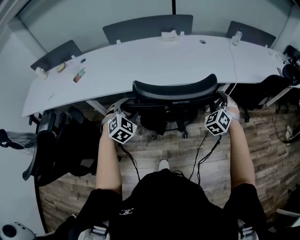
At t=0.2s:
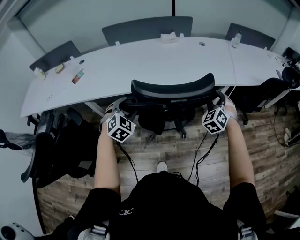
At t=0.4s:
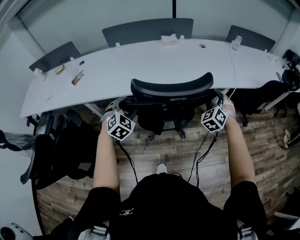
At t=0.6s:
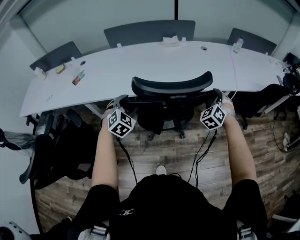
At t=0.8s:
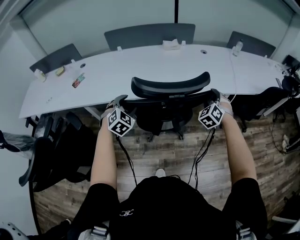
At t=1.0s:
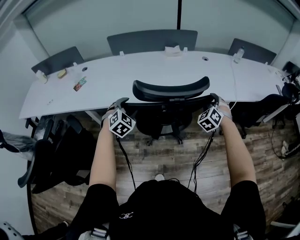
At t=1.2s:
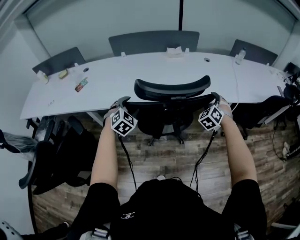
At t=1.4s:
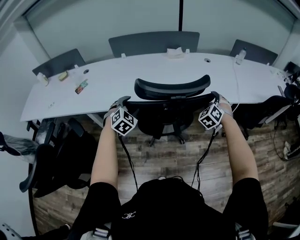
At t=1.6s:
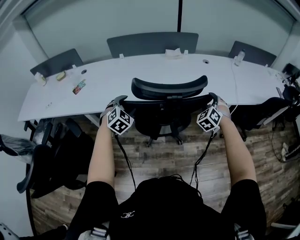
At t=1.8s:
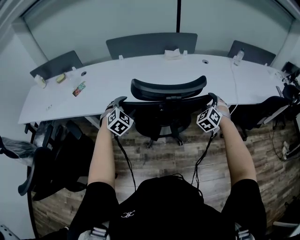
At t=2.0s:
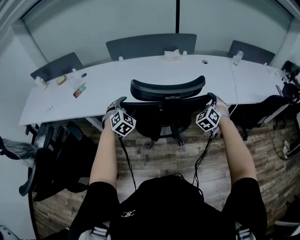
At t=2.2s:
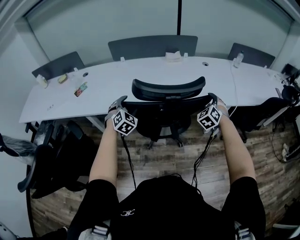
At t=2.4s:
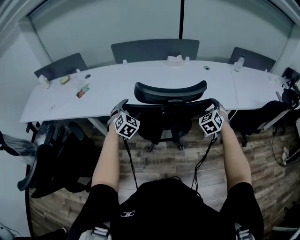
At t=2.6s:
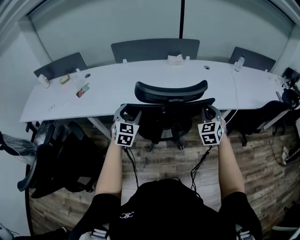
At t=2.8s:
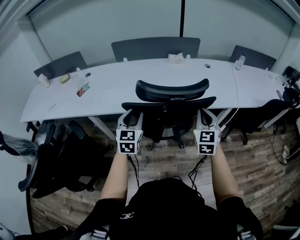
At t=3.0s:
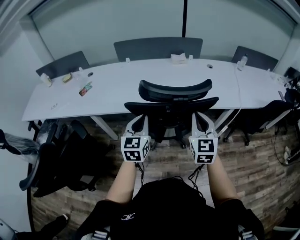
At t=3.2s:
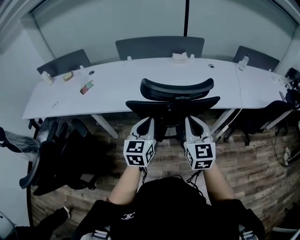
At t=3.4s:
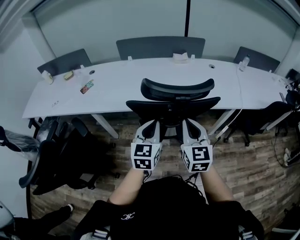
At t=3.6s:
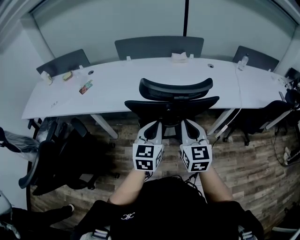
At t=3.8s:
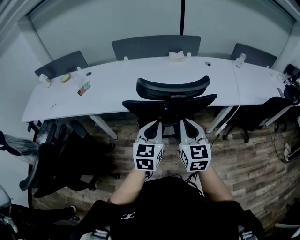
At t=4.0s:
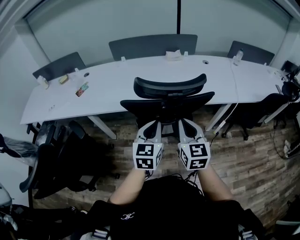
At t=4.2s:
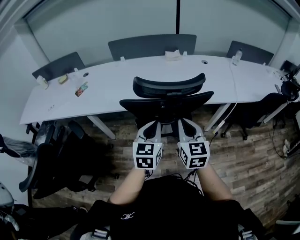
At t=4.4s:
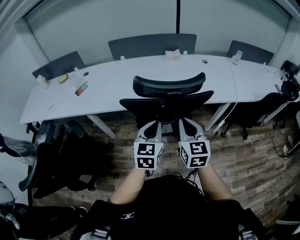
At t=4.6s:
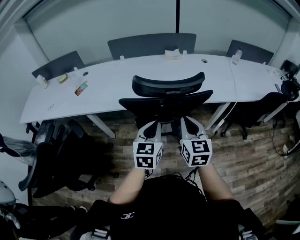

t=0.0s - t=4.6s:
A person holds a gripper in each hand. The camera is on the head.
t=0.0s - t=1.6s: The two grippers go about 15 cm forward and to the left.
t=1.6s - t=3.0s: The right gripper heads backward, to the left and upward, covering some 20 cm, rotates around the line of its fingers by approximately 40 degrees, clockwise from behind, and closes up. Meanwhile the left gripper travels backward, upward and to the right by approximately 15 cm, rolls counterclockwise, seen from behind, by roughly 50 degrees, and closes its fingers.
t=3.0s - t=4.6s: The left gripper moves to the right, approximately 10 cm.

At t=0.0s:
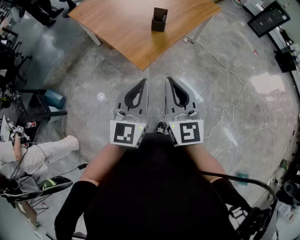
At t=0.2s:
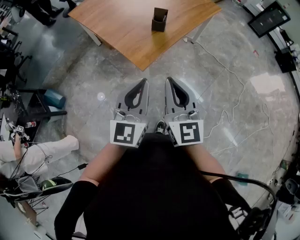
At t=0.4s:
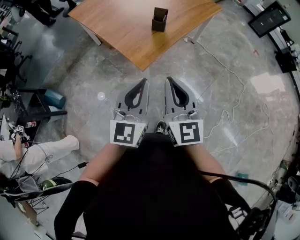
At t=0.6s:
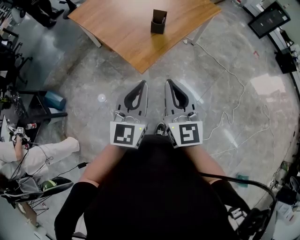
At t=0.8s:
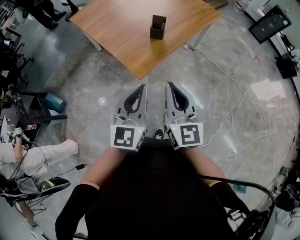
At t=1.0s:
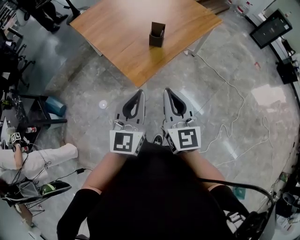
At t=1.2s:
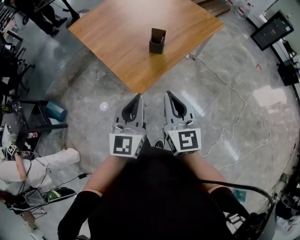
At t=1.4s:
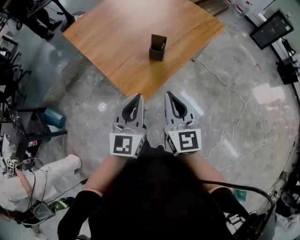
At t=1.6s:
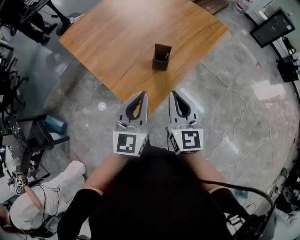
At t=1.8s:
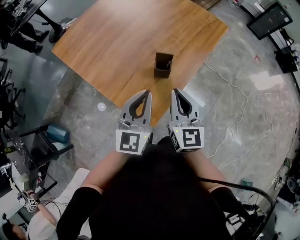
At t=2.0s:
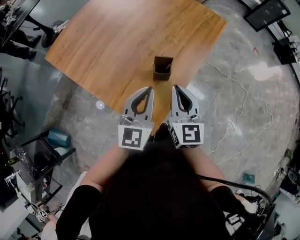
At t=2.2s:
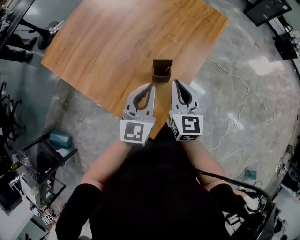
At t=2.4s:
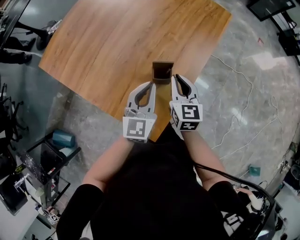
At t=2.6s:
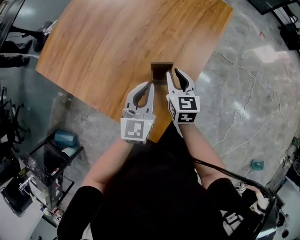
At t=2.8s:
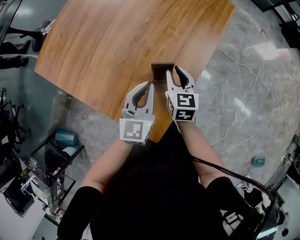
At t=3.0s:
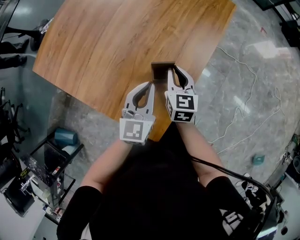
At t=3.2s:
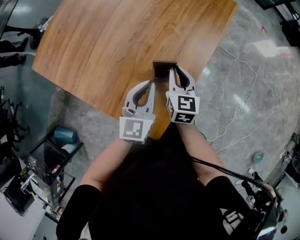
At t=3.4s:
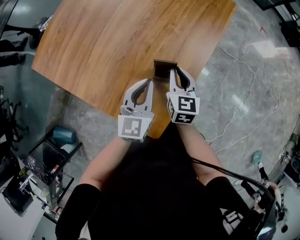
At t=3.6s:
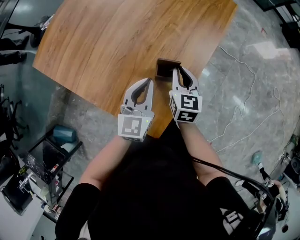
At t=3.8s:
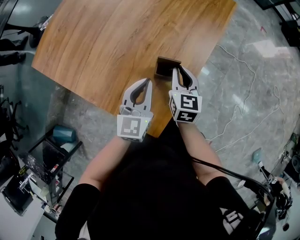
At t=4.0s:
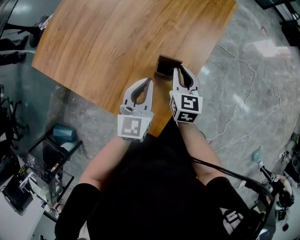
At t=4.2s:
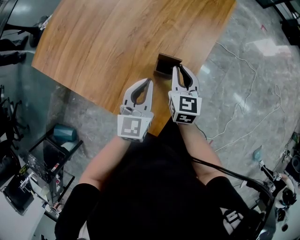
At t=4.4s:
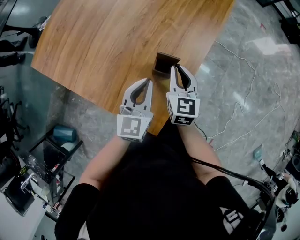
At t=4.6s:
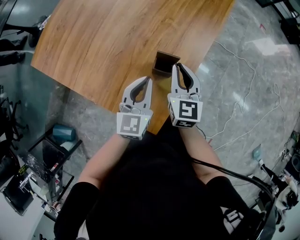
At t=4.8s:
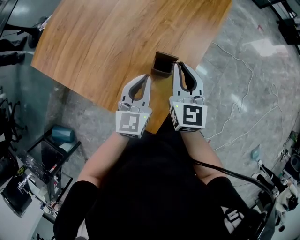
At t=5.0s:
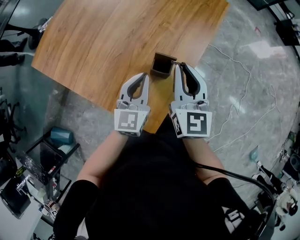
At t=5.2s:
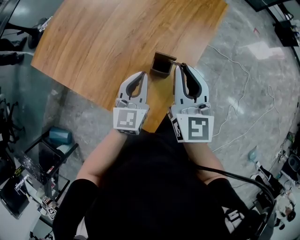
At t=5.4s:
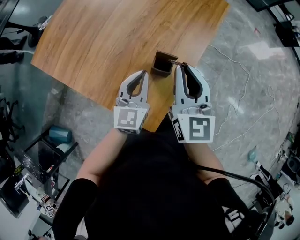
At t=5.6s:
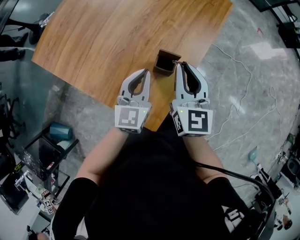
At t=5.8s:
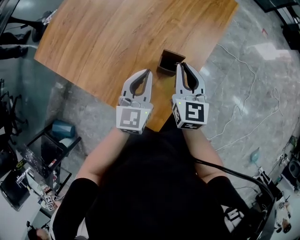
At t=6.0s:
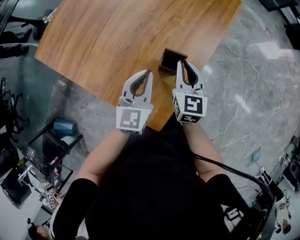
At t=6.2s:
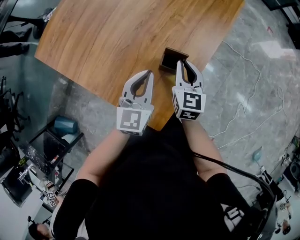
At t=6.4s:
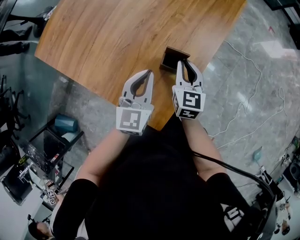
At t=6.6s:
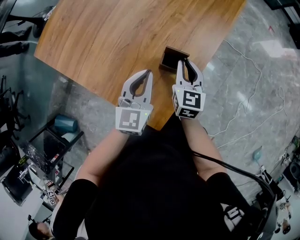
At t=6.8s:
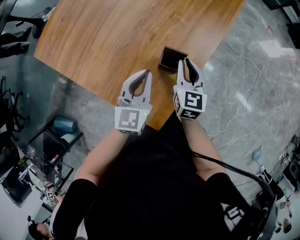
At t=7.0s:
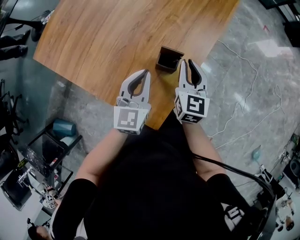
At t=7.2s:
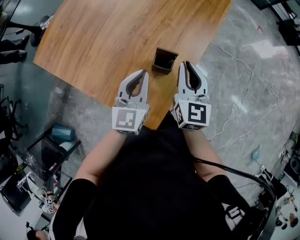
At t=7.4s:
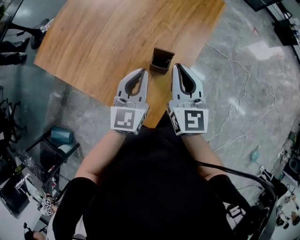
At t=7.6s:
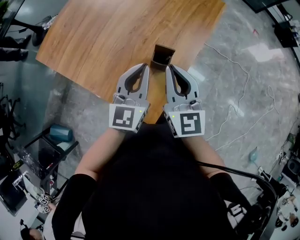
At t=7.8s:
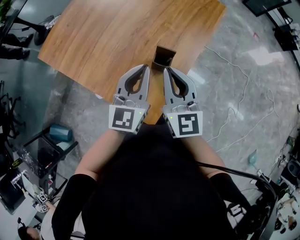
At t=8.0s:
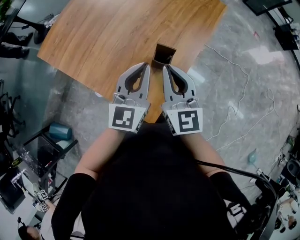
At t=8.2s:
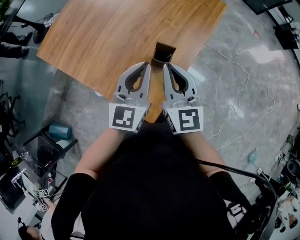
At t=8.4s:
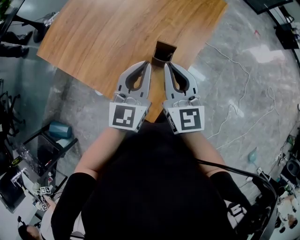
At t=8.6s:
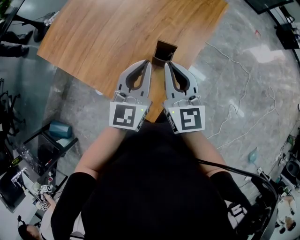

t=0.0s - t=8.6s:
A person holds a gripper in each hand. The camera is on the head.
t=0.0s - t=1.4s: The two grippers go about 15 cm forward.
t=1.4s - t=2.8s: Both grippers travel together forward and downward, some 35 cm. The right gripper changes its angle by roughly 30 degrees. The left gripper changes its angle by approximately 20 degrees.
t=2.8s - t=4.4s: There are only small adjustments of the grippers.
t=4.4s - t=5.8s: The right gripper shifts about 5 cm upward.
t=5.8s - t=7.2s: The right gripper reaches some 10 cm downward, then returns.
t=7.2s - t=8.6s: The left gripper travels upward by roughly 10 cm, while the right gripper shifts about 10 cm upward, backward and to the left.

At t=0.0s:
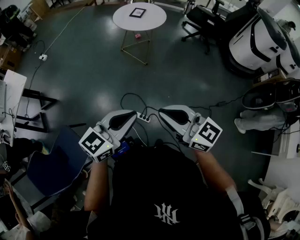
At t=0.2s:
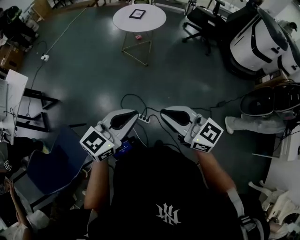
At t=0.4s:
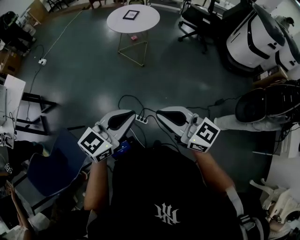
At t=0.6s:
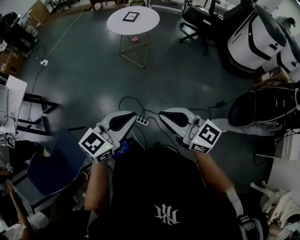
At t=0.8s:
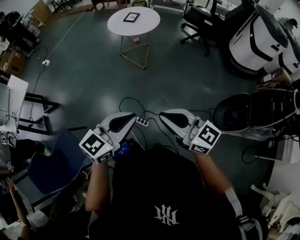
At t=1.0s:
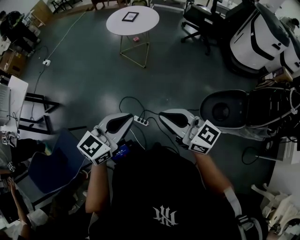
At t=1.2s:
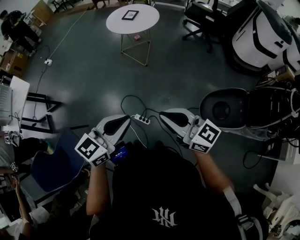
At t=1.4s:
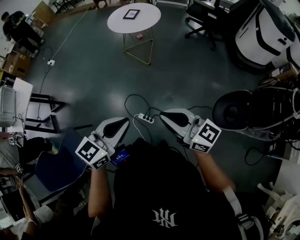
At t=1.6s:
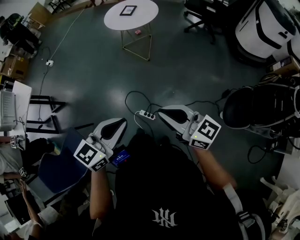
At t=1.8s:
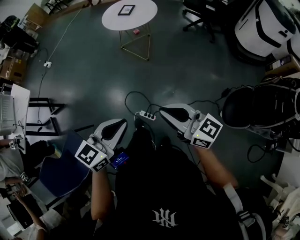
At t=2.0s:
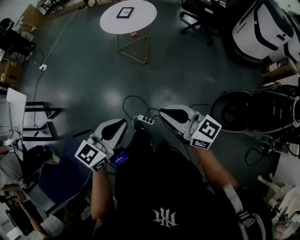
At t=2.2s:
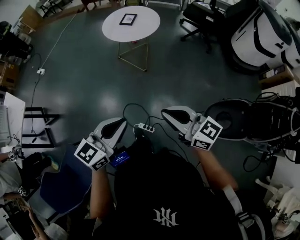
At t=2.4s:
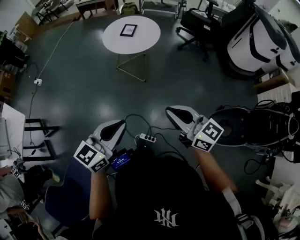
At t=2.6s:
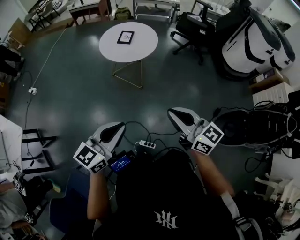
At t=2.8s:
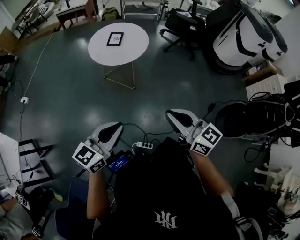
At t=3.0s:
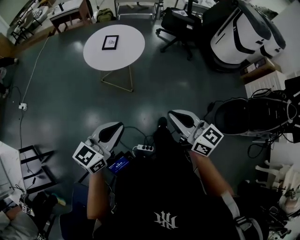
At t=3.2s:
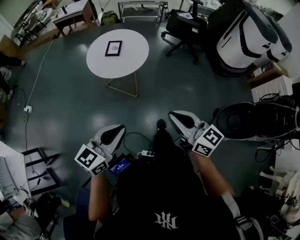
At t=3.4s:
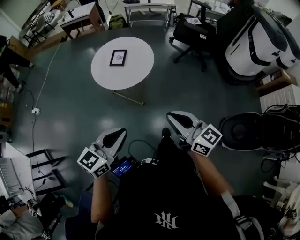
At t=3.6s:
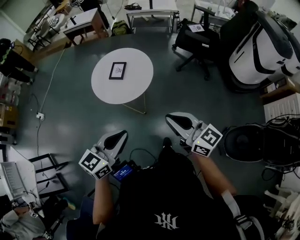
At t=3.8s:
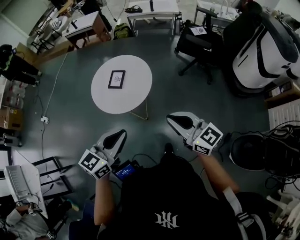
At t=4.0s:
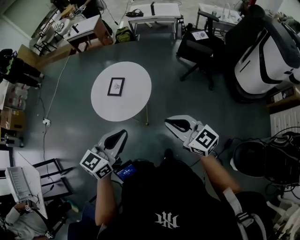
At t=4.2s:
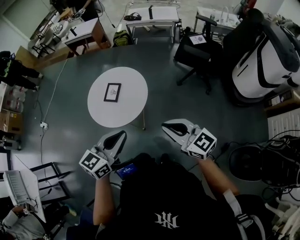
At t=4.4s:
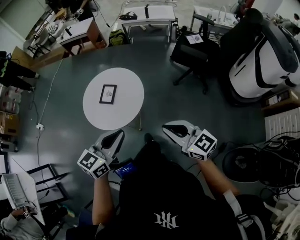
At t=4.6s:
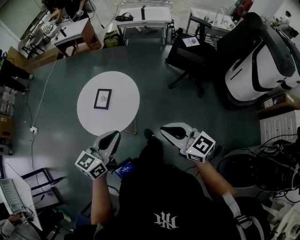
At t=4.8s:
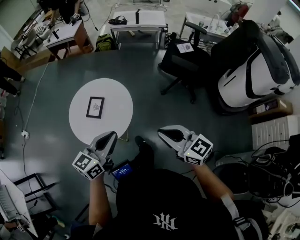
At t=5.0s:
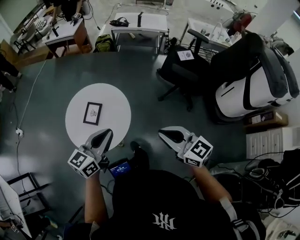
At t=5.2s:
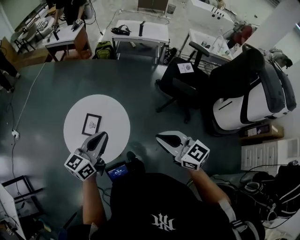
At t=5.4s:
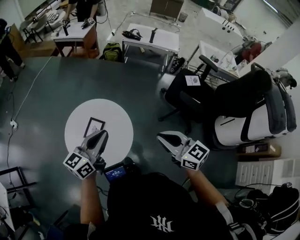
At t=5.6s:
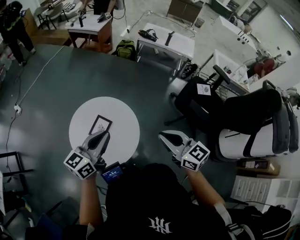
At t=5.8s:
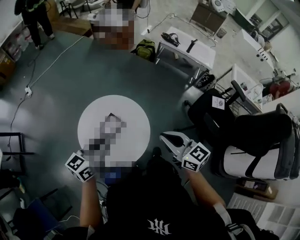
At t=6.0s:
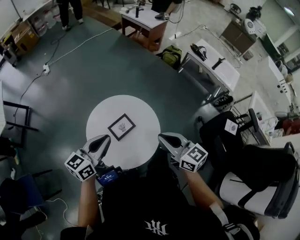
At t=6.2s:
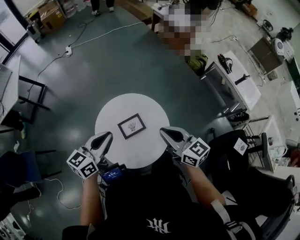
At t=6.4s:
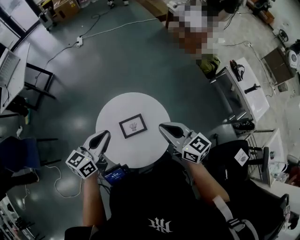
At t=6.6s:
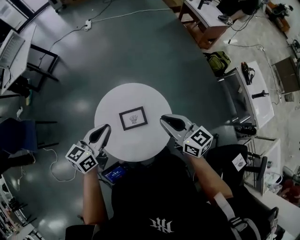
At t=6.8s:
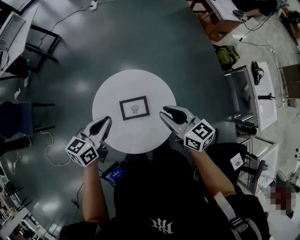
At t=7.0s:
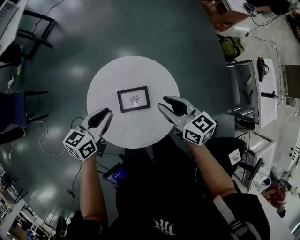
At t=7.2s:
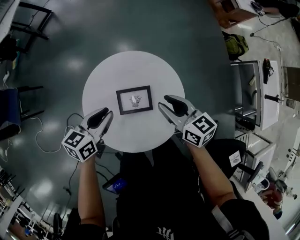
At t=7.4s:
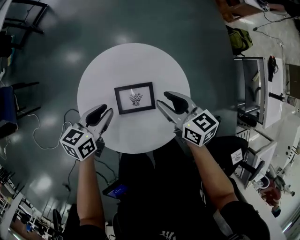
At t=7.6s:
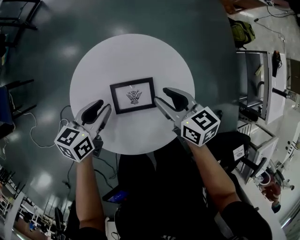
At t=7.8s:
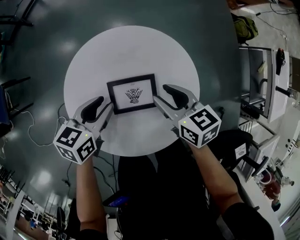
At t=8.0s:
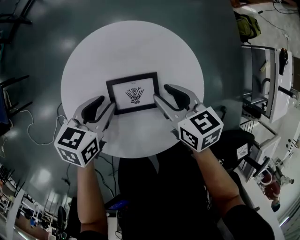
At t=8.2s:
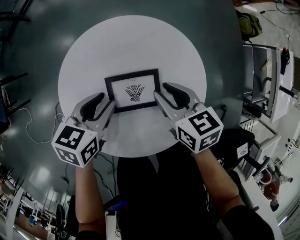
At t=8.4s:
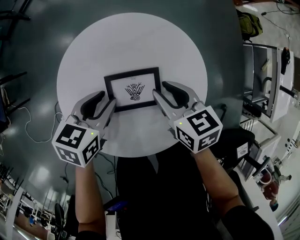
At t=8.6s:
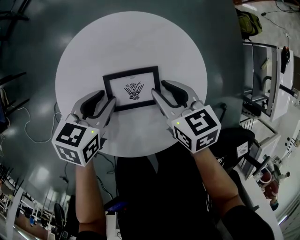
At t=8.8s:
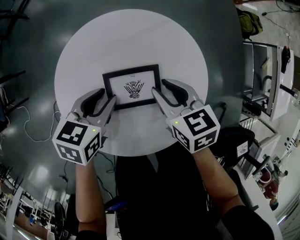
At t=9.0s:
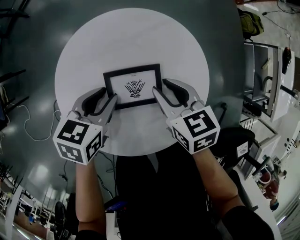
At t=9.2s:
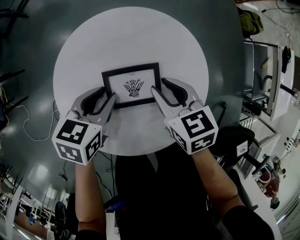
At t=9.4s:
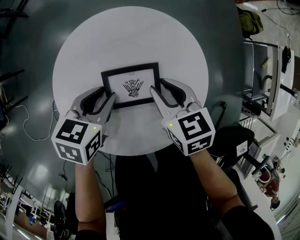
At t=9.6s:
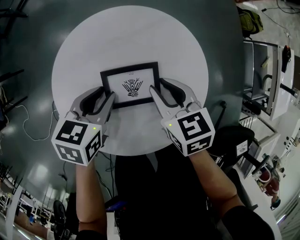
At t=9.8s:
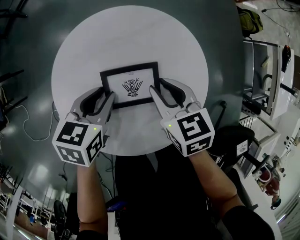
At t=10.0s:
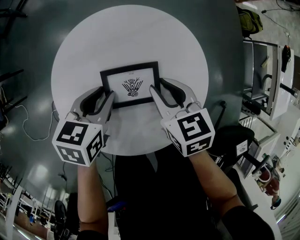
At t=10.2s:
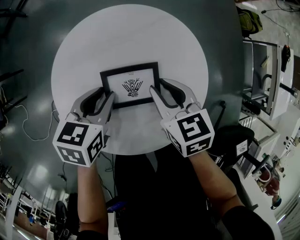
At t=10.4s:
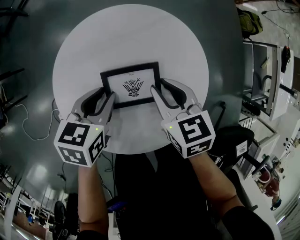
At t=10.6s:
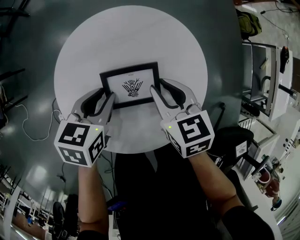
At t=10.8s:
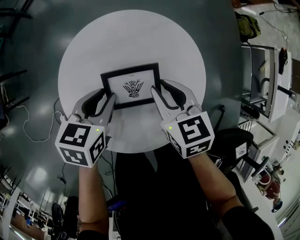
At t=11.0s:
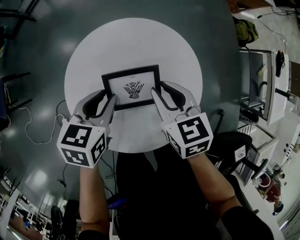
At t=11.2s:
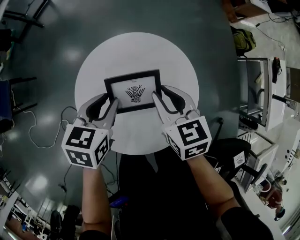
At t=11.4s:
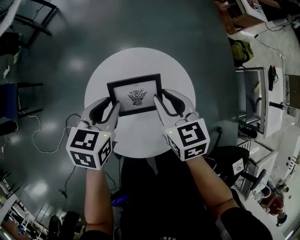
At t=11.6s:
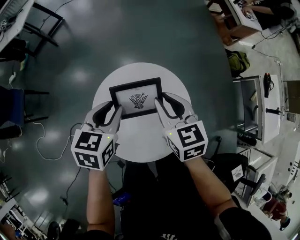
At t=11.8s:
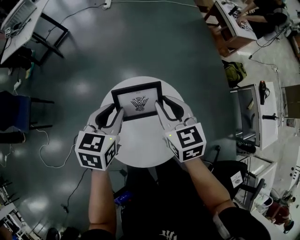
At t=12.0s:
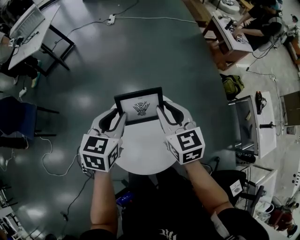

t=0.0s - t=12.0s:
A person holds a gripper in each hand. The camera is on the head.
t=0.0s - t=1.6s: Both grippers move to the right, some 10 cm.
t=1.6s - t=3.0s: The right gripper is displaced forward by roughly 30 cm, and swivels approximately 30 degrees. Meanwhile the left gripper heads forward and to the left, covering about 35 cm.
t=3.0s - t=4.4s: The two grippers travel together, forward and to the right, approximately 40 cm.
t=4.4s - t=6.0s: The left gripper changes place by approximately 35 cm, and changes its angle by about 40 degrees; the right gripper shifts by some 40 cm, and changes its angle by approximately 30 degrees.
t=6.0s - t=7.6s: The grippers both shift downward by roughly 30 cm. The right gripper turns by roughly 40 degrees, and opens. Meanwhile the left gripper swivels approximately 40 degrees, and opens up.
t=7.6s - t=9.0s: The grippers both shift downward by some 5 cm.
t=9.0s - t=10.4s: The grippers make only small movements.
t=10.4s - t=12.0s: Both grippers travel together upward, roughly 30 cm. The right gripper swivels roughly 30 degrees. The left gripper turns by approximately 30 degrees.
